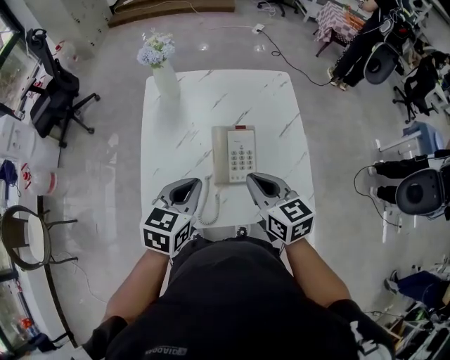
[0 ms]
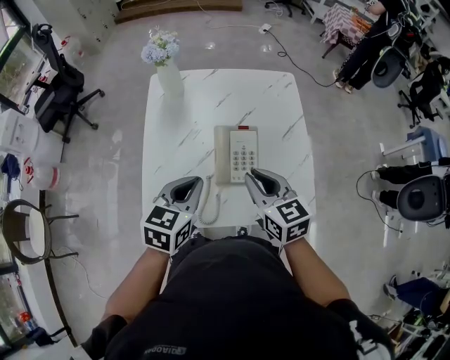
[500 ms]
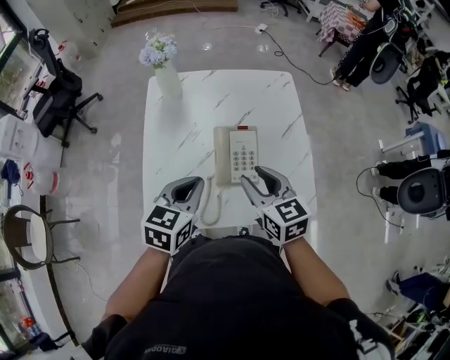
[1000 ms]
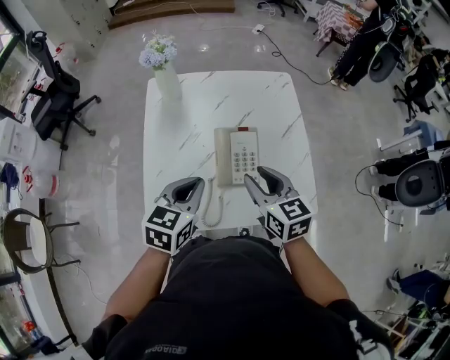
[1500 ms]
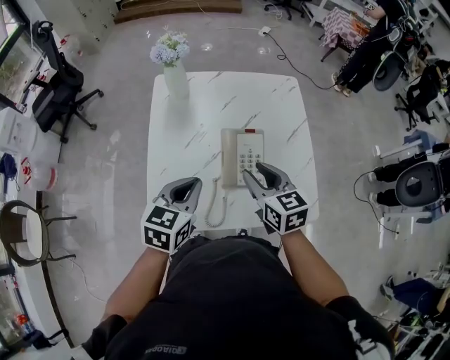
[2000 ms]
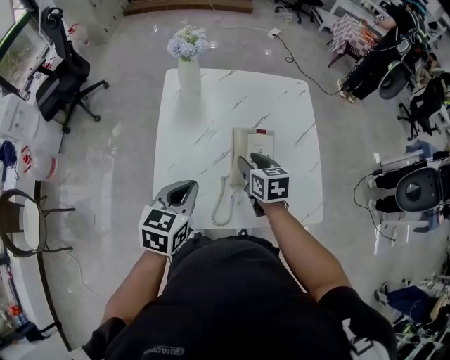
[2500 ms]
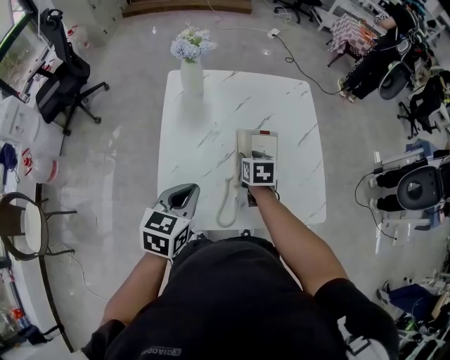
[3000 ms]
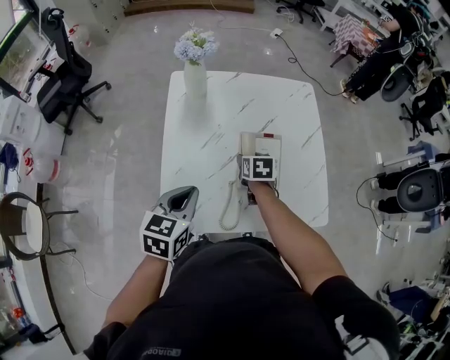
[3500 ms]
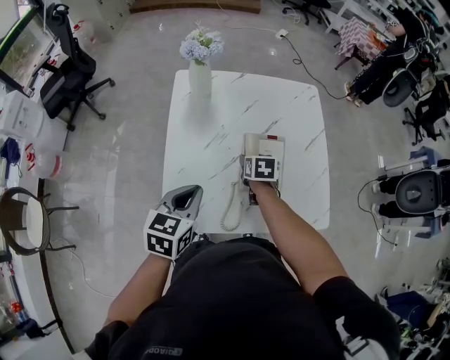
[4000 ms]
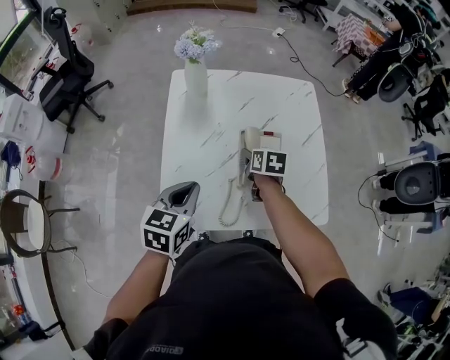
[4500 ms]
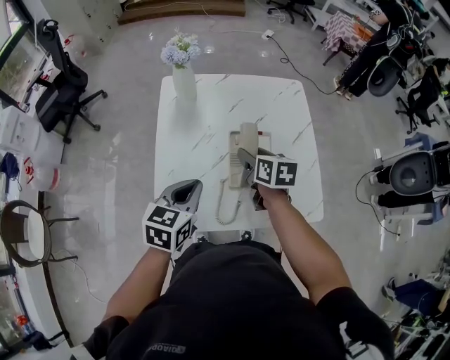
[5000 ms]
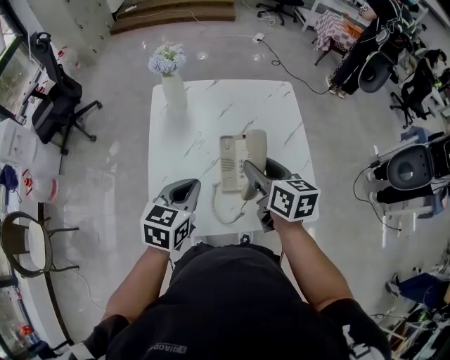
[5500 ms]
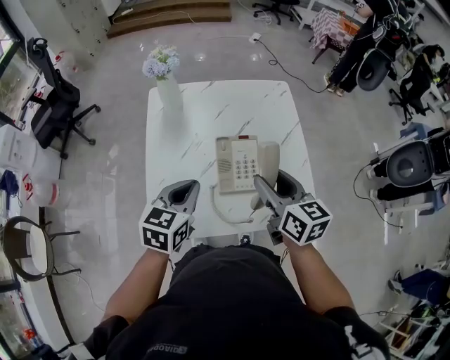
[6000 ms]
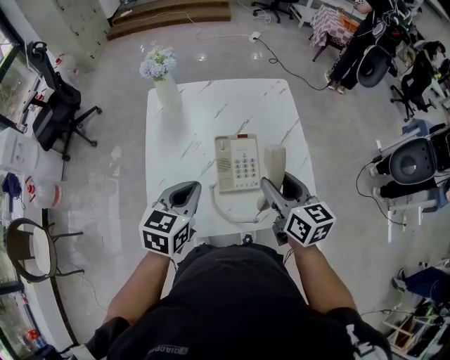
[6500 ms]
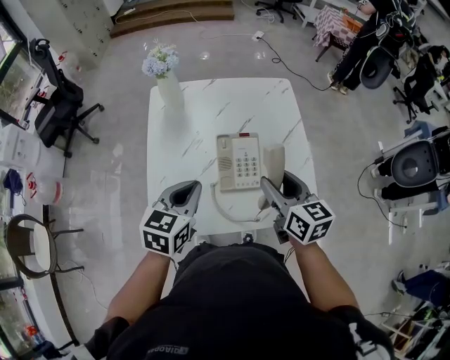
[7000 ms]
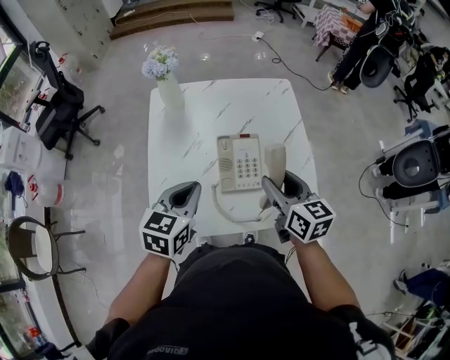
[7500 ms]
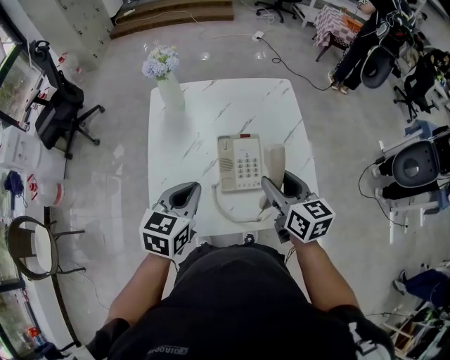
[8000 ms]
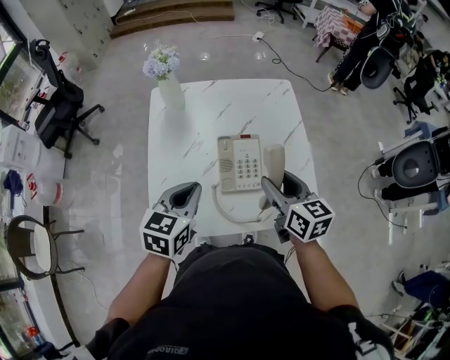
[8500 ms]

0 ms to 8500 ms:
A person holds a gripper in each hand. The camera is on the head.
0 ms to 2000 ms: The right gripper opens its fingers.
2000 ms to 4000 ms: The left gripper is displaced to the left by some 5 cm; the right gripper shifts about 20 cm downward and forward, and changes its angle by roughly 30 degrees.
4000 ms to 6500 ms: The right gripper is displaced upward, to the right and backward by approximately 25 cm, and points its fingers about 40 degrees further upward; the left gripper moves to the right, roughly 10 cm.
6500 ms to 8500 ms: The grippers stay close to where they were, moving slightly.

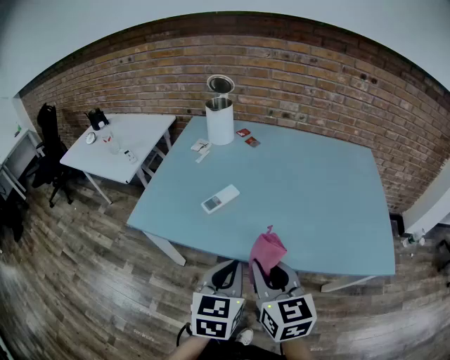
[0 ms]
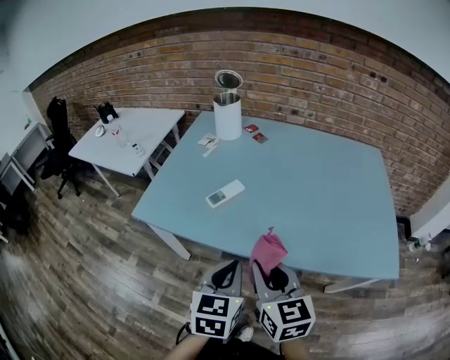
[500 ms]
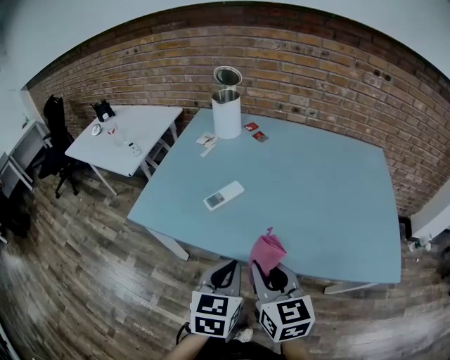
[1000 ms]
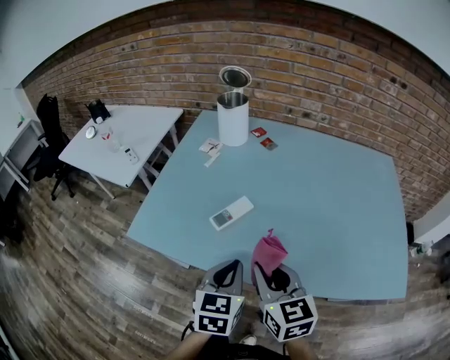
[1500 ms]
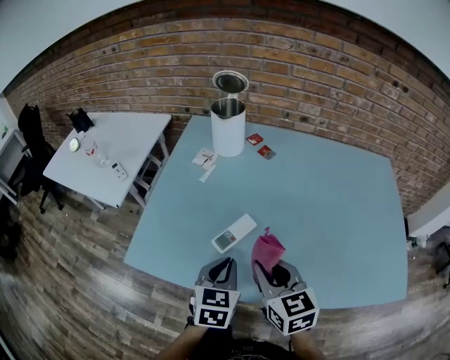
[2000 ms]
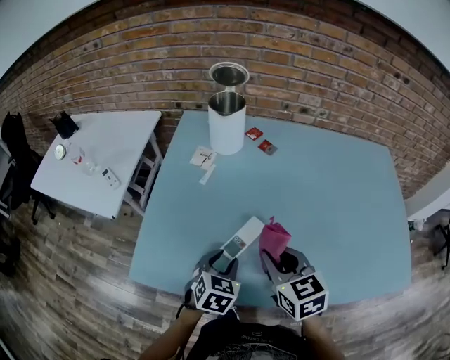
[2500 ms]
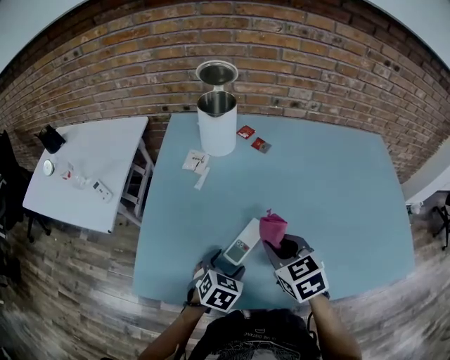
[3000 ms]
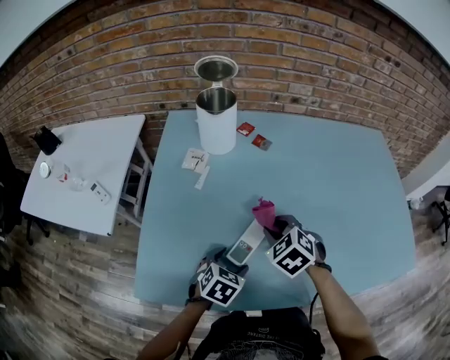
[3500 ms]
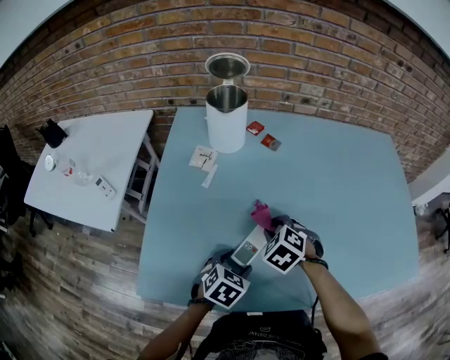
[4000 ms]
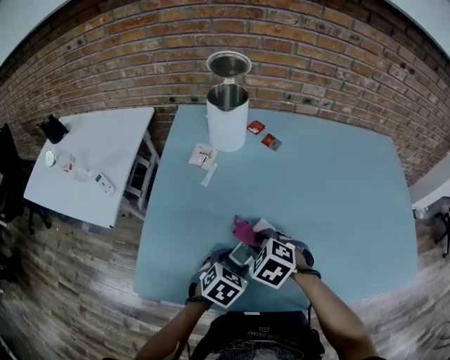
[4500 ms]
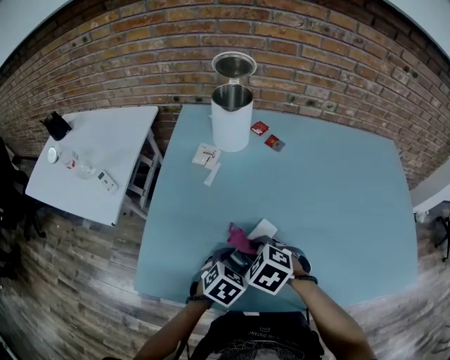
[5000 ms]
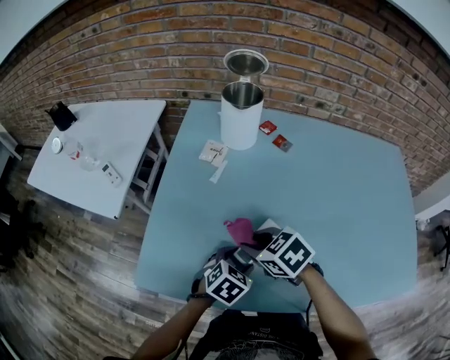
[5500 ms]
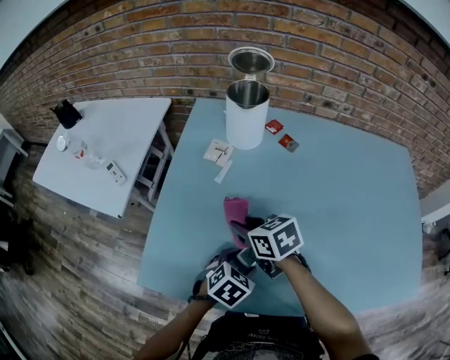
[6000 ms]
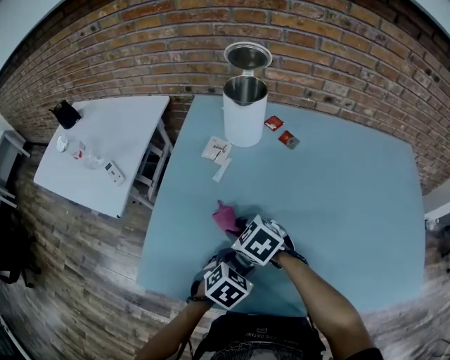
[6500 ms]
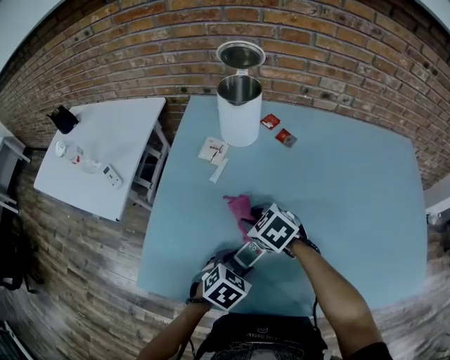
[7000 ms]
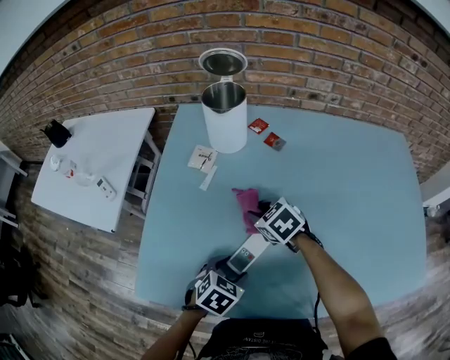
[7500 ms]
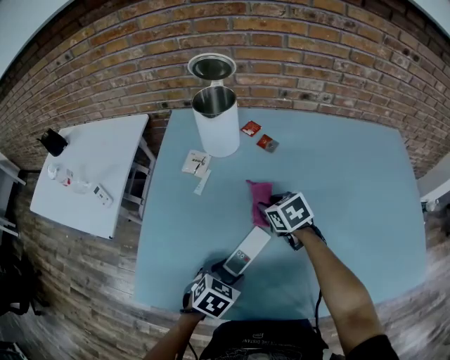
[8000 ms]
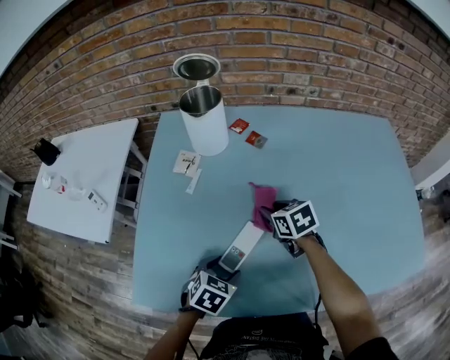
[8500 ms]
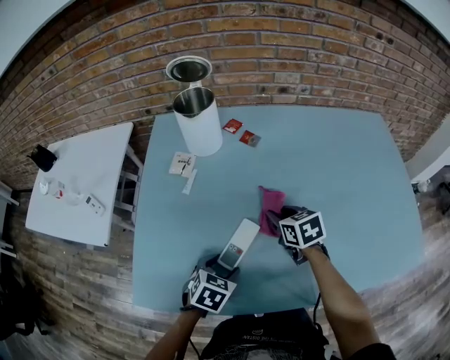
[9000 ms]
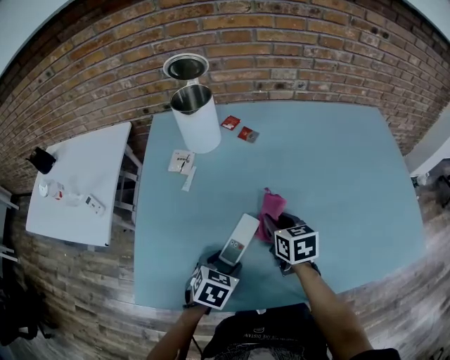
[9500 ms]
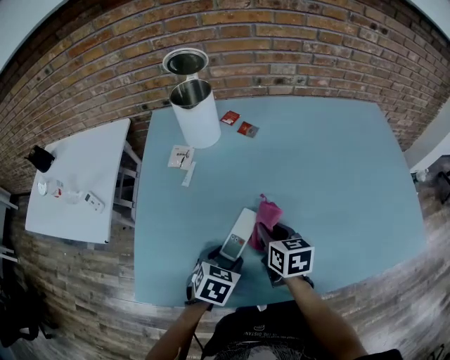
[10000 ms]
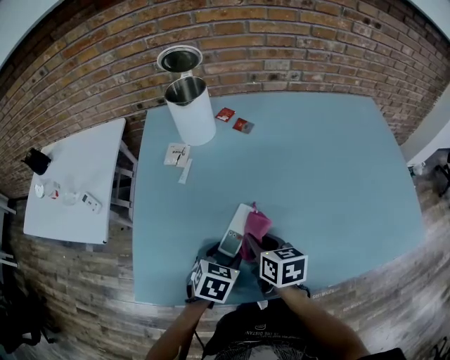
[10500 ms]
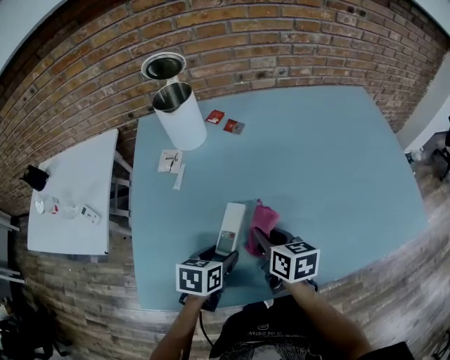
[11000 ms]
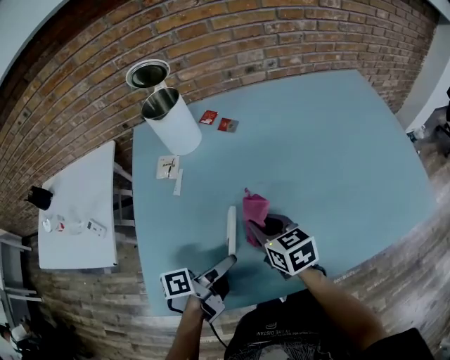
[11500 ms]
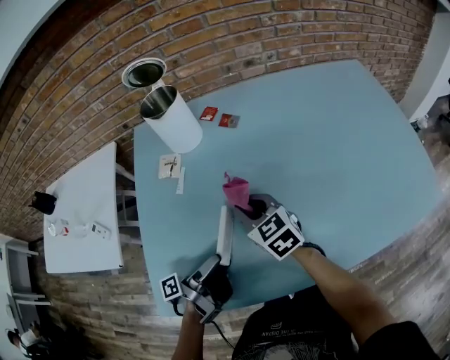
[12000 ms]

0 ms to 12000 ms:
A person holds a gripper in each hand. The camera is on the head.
0 ms to 2000 ms: The right gripper heads forward, covering roughly 20 cm; the left gripper travels forward and downward by roughly 20 cm.
2000 ms to 4000 ms: The right gripper moves downward and forward, some 20 cm, and points its fingers approximately 40 degrees further downward; the left gripper is displaced downward and forward by some 15 cm, turns by about 40 degrees, and opens its fingers.
4000 ms to 6000 ms: The right gripper shifts roughly 15 cm to the left and upward, and rotates some 50 degrees.
6000 ms to 8000 ms: The right gripper is displaced to the right and forward by approximately 15 cm.
8000 ms to 10000 ms: The right gripper shifts about 10 cm backward, and turns by approximately 40 degrees.
10000 ms to 12000 ms: The left gripper shifts approximately 5 cm upward, and angles its fingers upward, by approximately 60 degrees. The right gripper goes roughly 5 cm to the left, and swivels roughly 30 degrees.

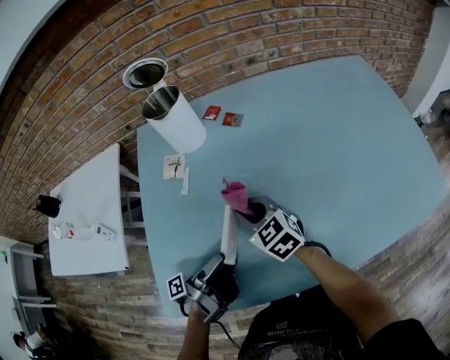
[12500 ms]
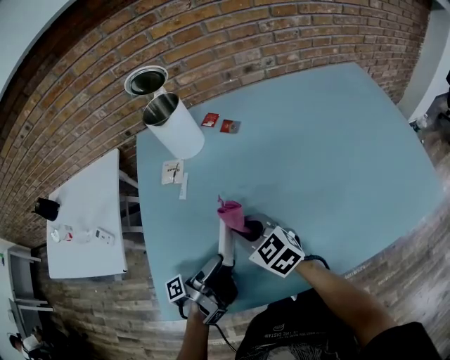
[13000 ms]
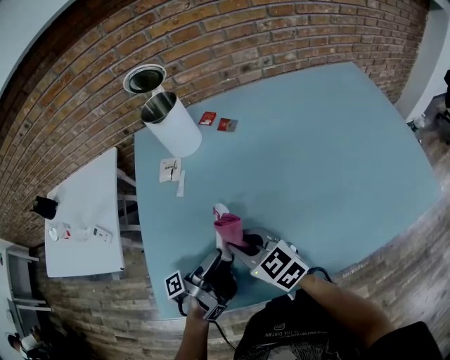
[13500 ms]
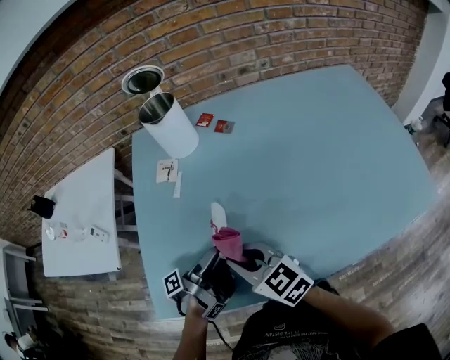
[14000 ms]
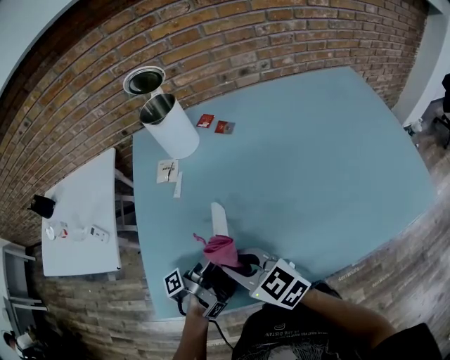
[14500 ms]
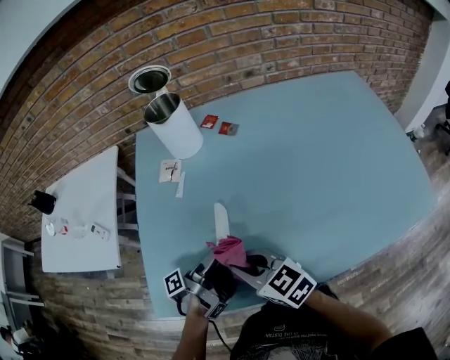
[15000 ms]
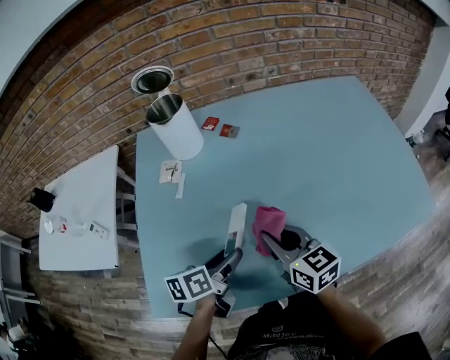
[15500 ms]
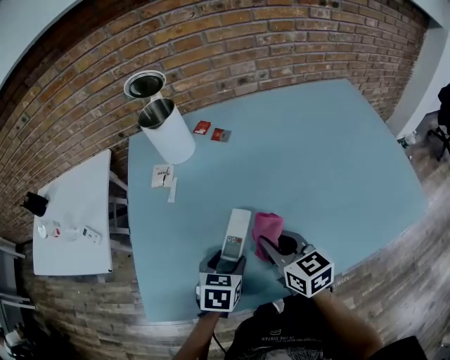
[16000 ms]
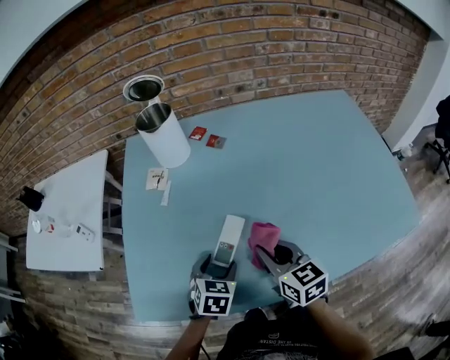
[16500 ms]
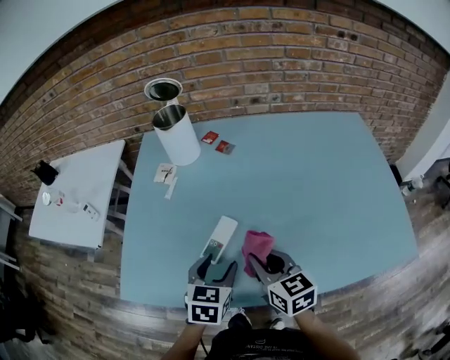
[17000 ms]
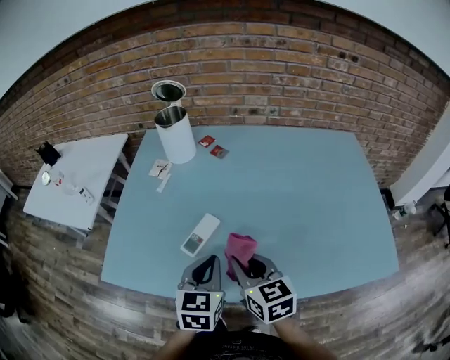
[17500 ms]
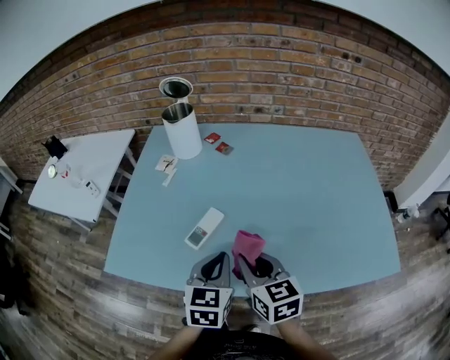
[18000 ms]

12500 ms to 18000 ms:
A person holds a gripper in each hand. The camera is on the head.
12500 ms to 14500 ms: The right gripper shifts about 15 cm backward and upward.
14500 ms to 16000 ms: The right gripper travels to the right by approximately 15 cm, and swivels about 30 degrees; the left gripper shifts by roughly 5 cm, and rotates around the line of its fingers by roughly 90 degrees, clockwise from behind.
16000 ms to 18000 ms: The left gripper moves upward, to the right and backward, about 20 cm, swivels some 30 degrees, and closes. Meanwhile the right gripper moves backward, upward and to the right, about 10 cm.
